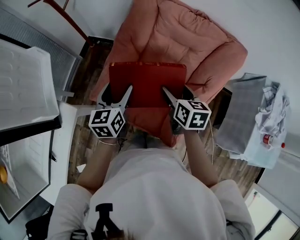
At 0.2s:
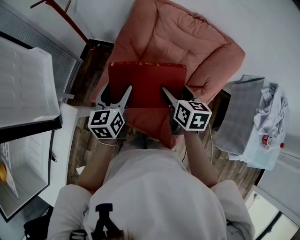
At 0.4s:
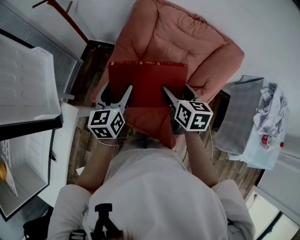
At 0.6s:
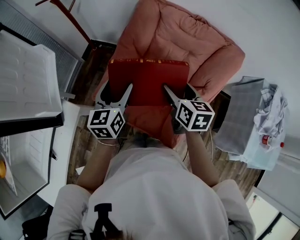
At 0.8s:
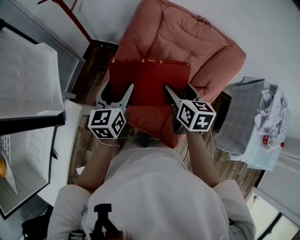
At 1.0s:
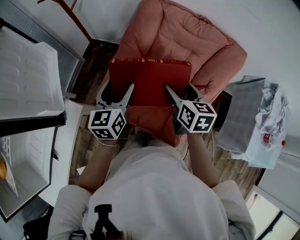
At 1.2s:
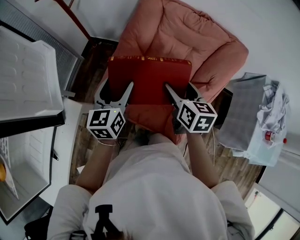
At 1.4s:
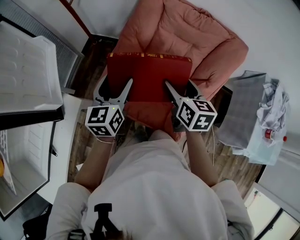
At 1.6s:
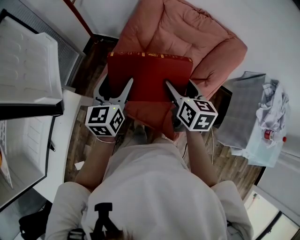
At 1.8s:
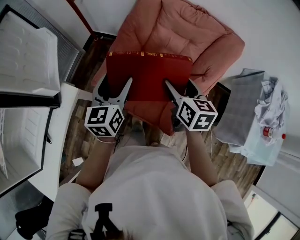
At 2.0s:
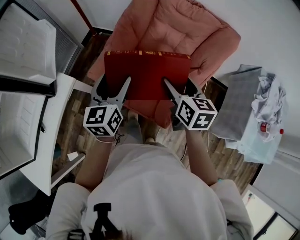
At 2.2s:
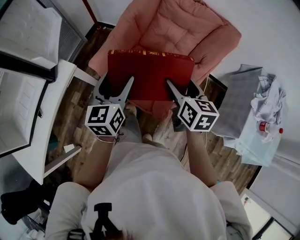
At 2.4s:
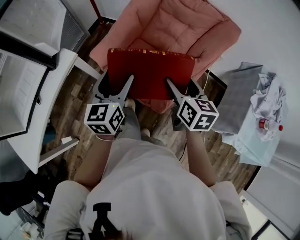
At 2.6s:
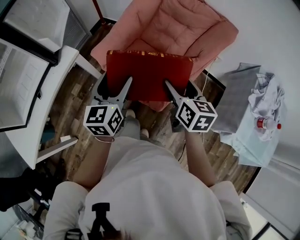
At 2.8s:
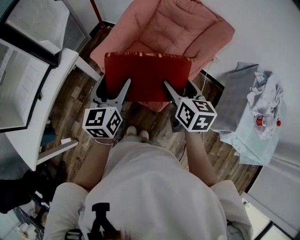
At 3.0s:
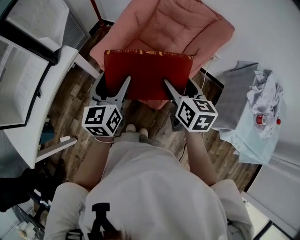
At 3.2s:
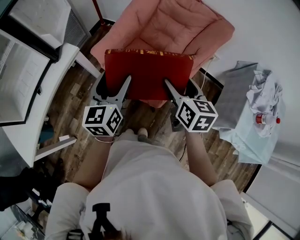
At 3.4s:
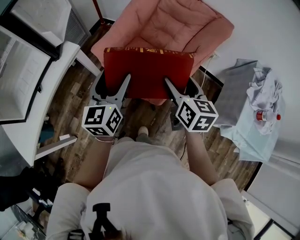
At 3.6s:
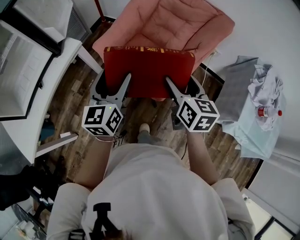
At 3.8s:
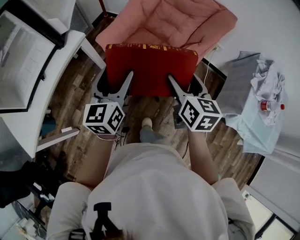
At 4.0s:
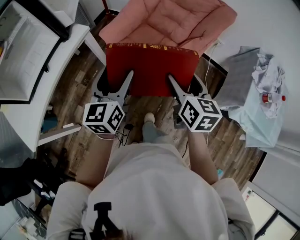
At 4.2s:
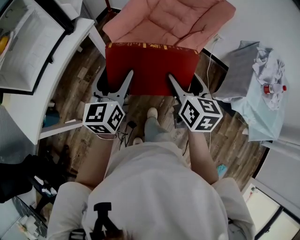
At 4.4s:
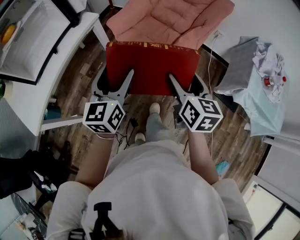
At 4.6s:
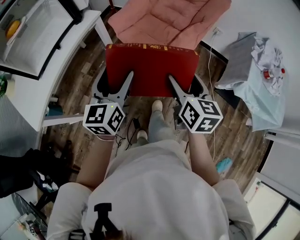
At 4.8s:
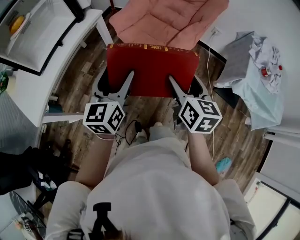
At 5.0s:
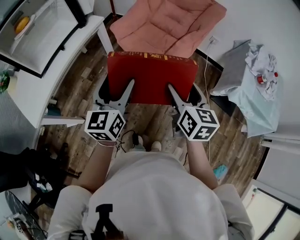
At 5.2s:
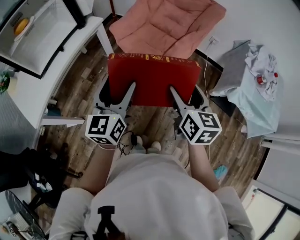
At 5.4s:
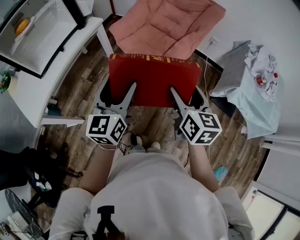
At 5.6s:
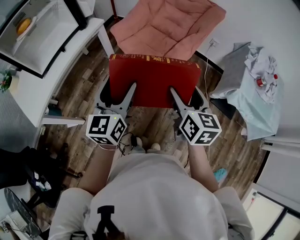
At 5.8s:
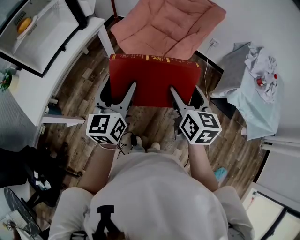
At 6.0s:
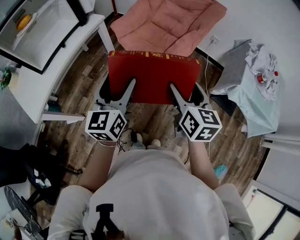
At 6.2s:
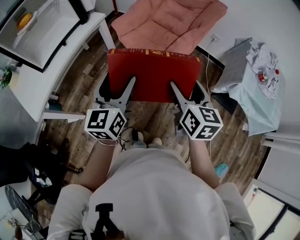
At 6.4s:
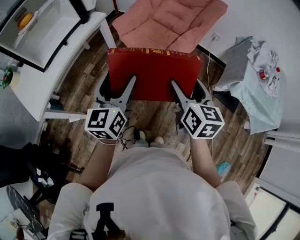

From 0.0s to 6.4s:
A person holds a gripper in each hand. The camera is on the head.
From 0.0s to 1.6s: The right gripper ends up about 5 cm from where it was. Meanwhile the left gripper travels upward by approximately 5 cm.
From 1.6s to 3.2s: The grippers both shift backward by approximately 20 cm.
From 3.2s to 4.8s: The two grippers go about 30 cm backward.
From 4.8s to 6.4s: The grippers make only small movements.

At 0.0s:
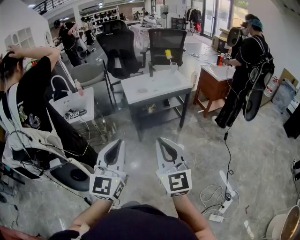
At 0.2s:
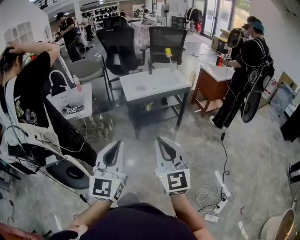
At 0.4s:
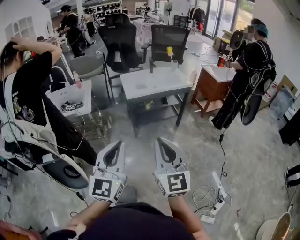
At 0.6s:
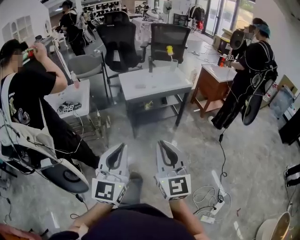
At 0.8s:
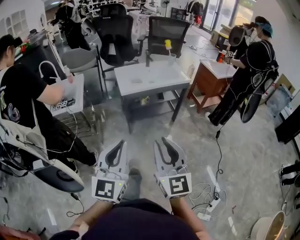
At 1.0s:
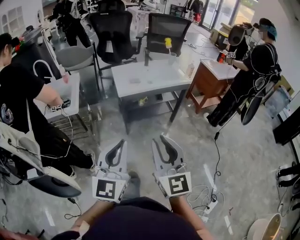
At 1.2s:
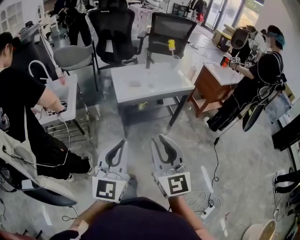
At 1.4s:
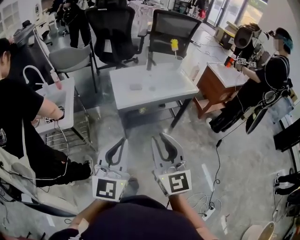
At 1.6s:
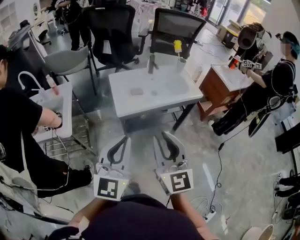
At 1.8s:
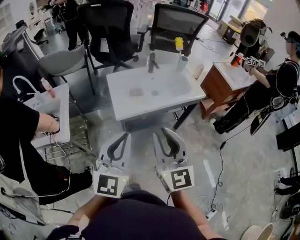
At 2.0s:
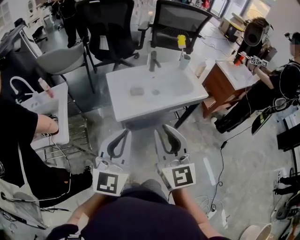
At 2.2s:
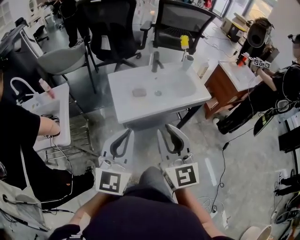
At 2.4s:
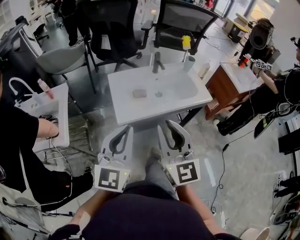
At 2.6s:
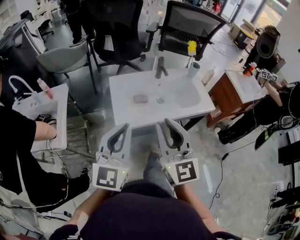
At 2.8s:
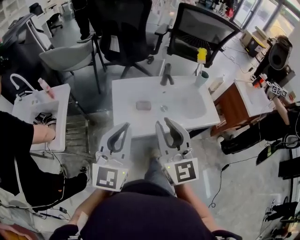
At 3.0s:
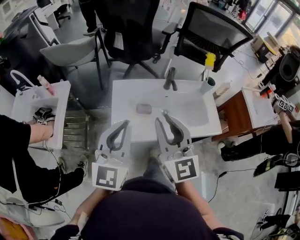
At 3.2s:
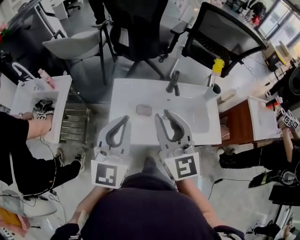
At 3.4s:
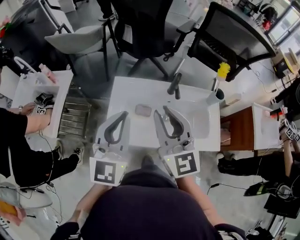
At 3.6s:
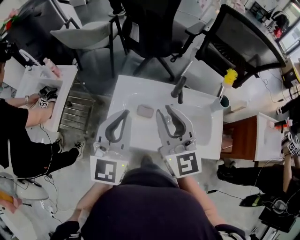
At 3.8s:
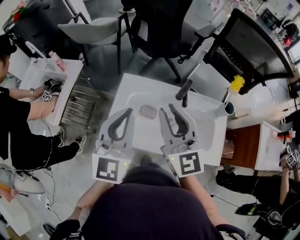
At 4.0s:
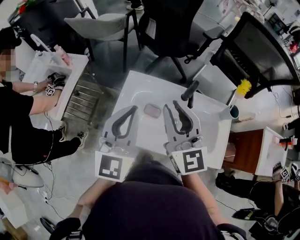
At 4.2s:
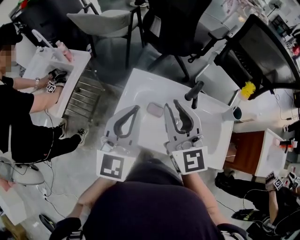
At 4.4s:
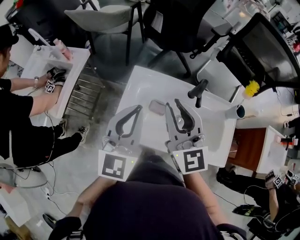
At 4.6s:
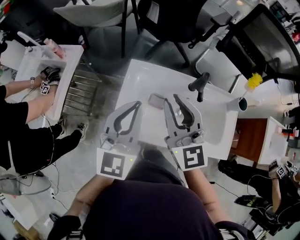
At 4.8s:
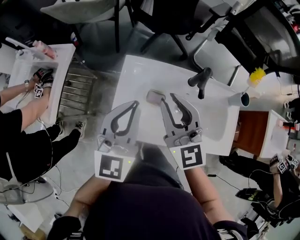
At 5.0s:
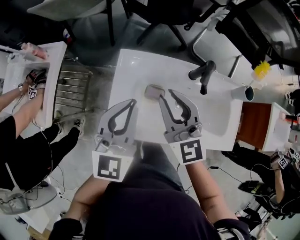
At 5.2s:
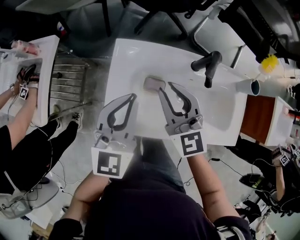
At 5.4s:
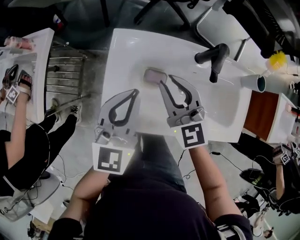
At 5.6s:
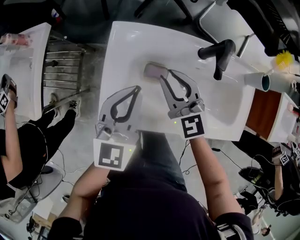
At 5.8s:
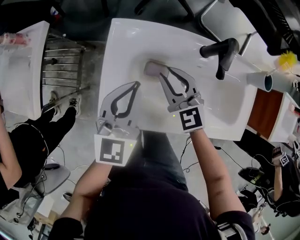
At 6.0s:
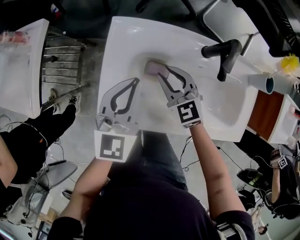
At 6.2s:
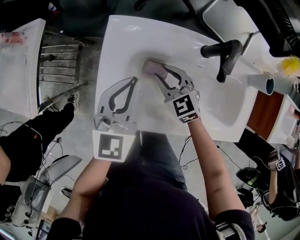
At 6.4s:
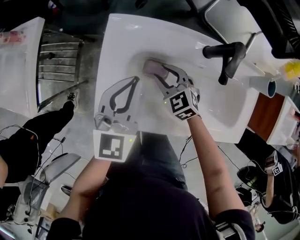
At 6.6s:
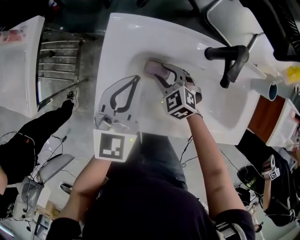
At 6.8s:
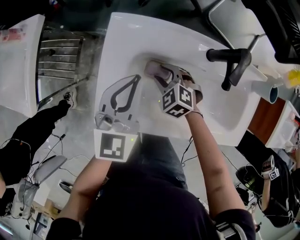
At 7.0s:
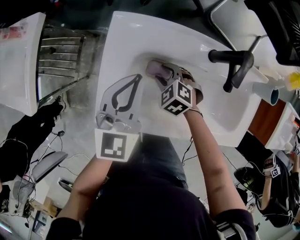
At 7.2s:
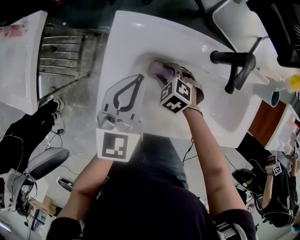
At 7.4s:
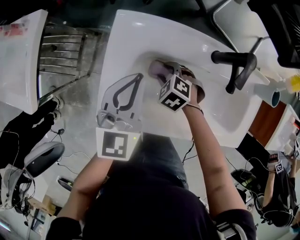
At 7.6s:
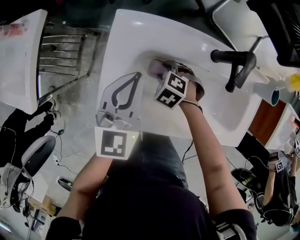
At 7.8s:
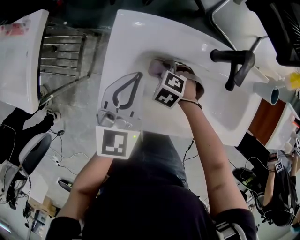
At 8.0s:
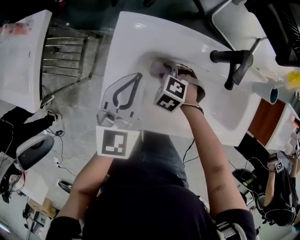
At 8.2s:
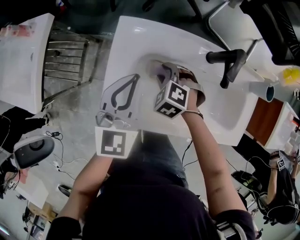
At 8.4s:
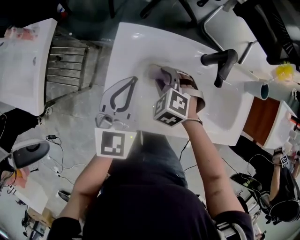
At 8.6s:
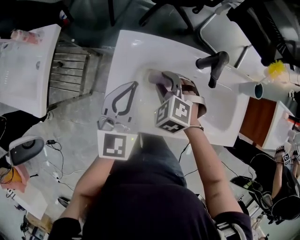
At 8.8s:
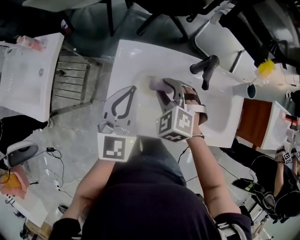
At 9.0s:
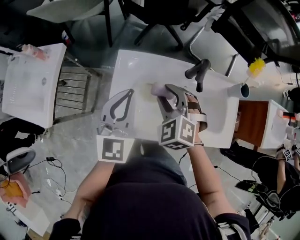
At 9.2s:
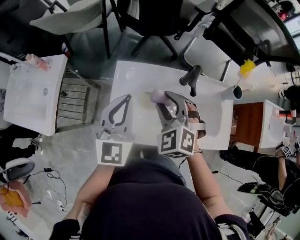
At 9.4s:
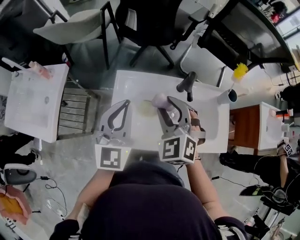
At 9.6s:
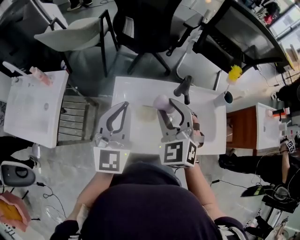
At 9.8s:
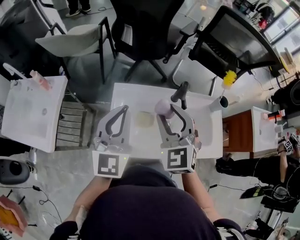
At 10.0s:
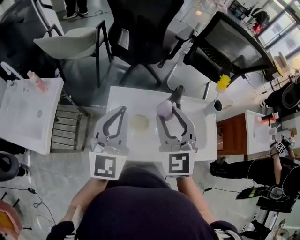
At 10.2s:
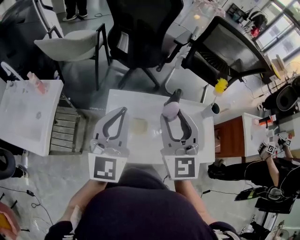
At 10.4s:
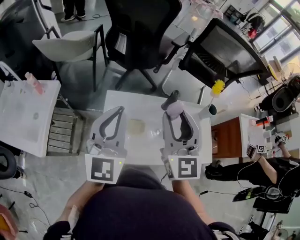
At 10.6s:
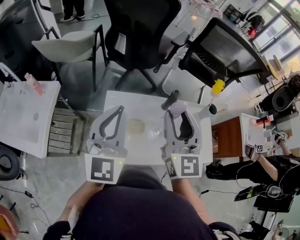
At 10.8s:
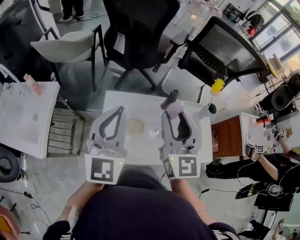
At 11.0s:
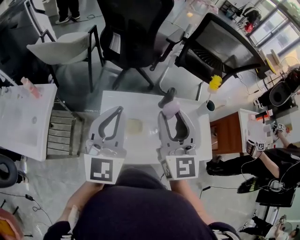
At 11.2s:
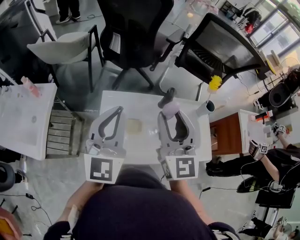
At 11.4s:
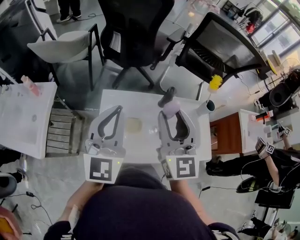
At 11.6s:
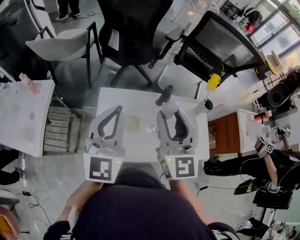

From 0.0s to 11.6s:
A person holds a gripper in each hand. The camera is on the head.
From 0.0s to 1.4s: Both grippers move forward, some 30 cm.
From 1.4s to 2.8s: The two grippers go roughly 35 cm forward.
From 2.8s to 4.4s: The right gripper moves approximately 20 cm, and rotates roughly 30 degrees, while the left gripper ends up some 20 cm from where it was, and turns by about 20 degrees.
From 4.4s to 5.8s: The left gripper is displaced downward by roughly 15 cm. The right gripper moves downward, approximately 25 cm, and turns by some 30 degrees.
From 5.8s to 7.2s: The right gripper goes roughly 15 cm downward, angles its fingers downward, by about 40 degrees, and opens up.
From 7.2s to 8.8s: The right gripper shifts roughly 20 cm upward, and changes its angle by about 20 degrees. Meanwhile the left gripper travels upward by approximately 10 cm.
From 8.8s to 10.2s: The left gripper is displaced upward by approximately 15 cm. Meanwhile the right gripper travels upward by roughly 25 cm, and tilts its fingers about 50 degrees upward.
From 10.2s to 11.6s: The grippers stay close to where they were, moving slightly.

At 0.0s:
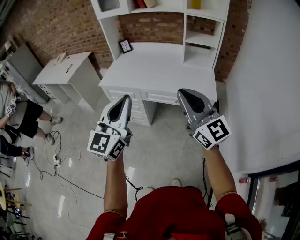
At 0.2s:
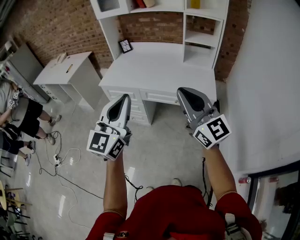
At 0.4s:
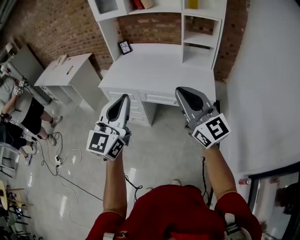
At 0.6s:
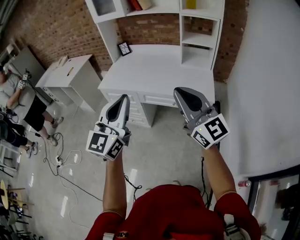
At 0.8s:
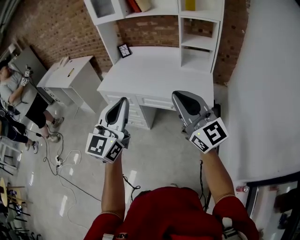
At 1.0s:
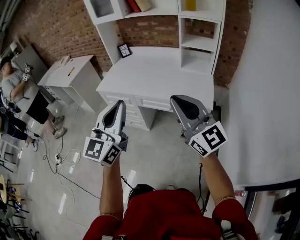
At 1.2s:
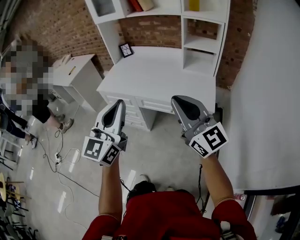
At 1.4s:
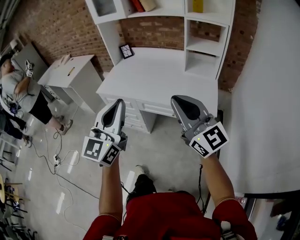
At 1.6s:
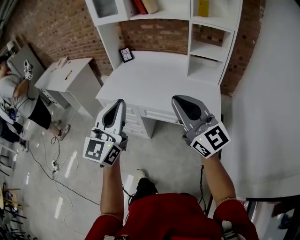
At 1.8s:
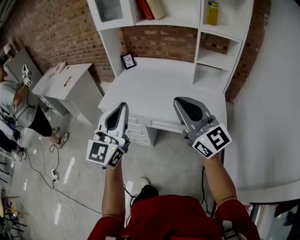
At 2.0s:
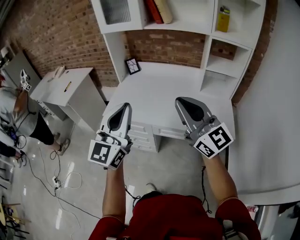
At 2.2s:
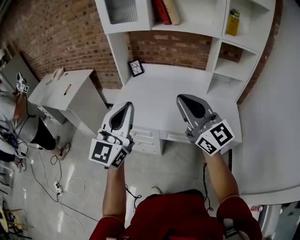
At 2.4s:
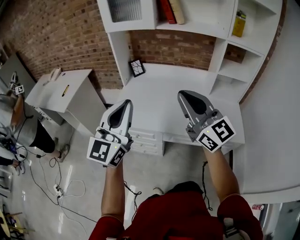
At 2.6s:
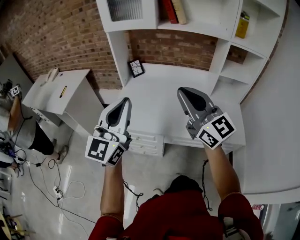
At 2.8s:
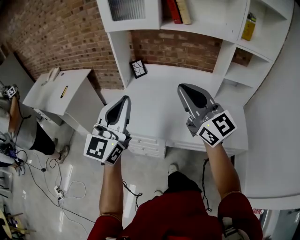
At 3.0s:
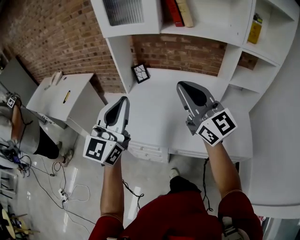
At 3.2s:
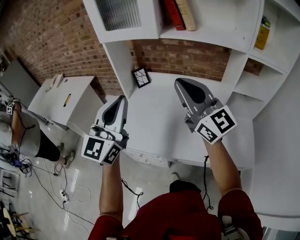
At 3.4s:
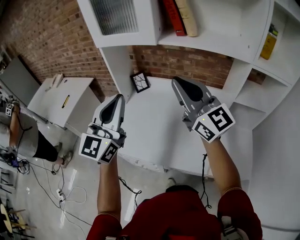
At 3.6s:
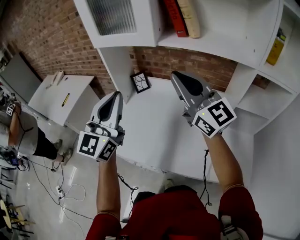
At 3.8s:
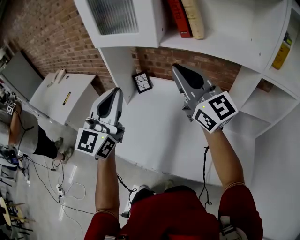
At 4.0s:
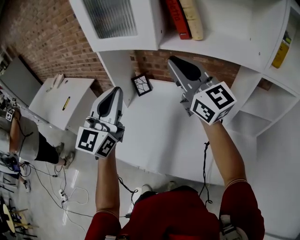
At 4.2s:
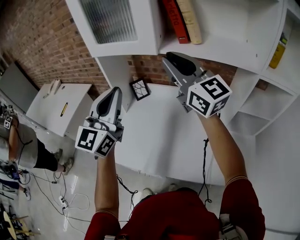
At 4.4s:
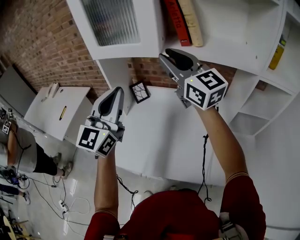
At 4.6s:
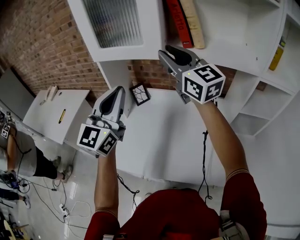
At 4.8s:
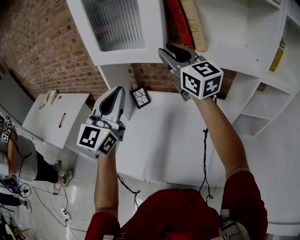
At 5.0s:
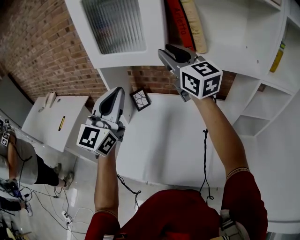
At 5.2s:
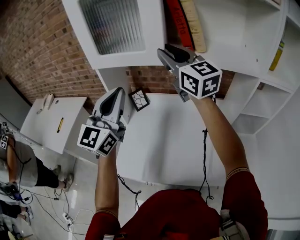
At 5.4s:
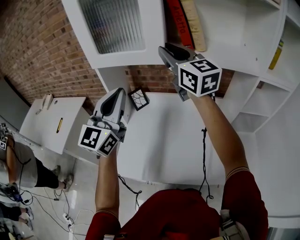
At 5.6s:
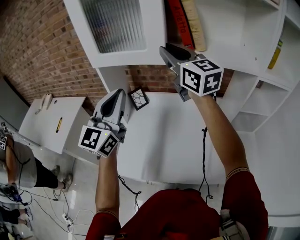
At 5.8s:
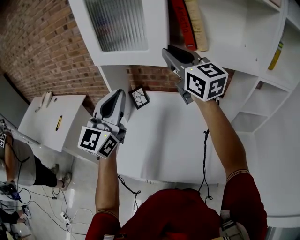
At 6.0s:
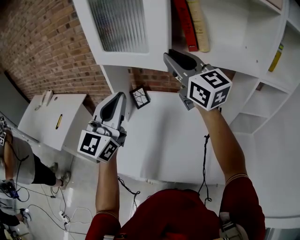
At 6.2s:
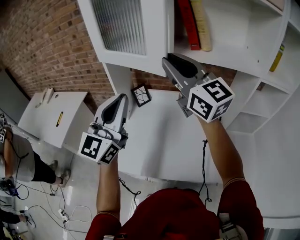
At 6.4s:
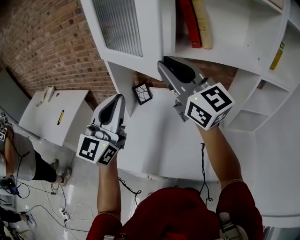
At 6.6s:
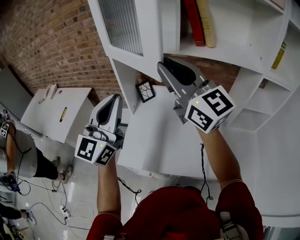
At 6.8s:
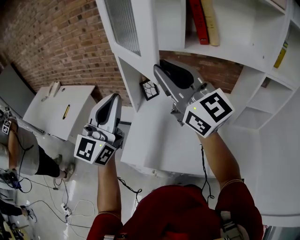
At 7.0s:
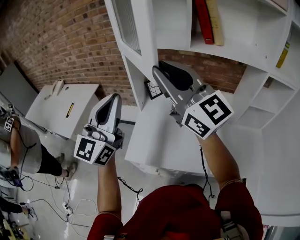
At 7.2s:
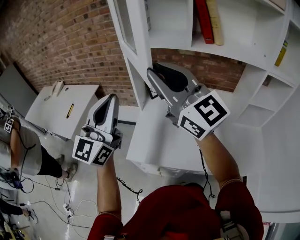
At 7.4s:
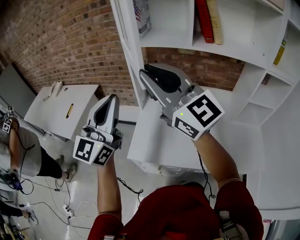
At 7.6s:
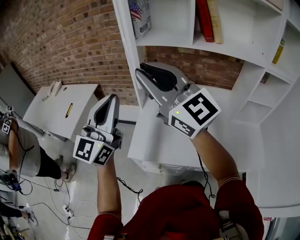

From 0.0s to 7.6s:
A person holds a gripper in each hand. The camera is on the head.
From 0.0s to 1.6s: The two grippers go some 10 cm forward.
From 1.6s to 3.0s: Both grippers move forward and to the left, roughly 40 cm.
From 3.0s to 4.6s: The grippers both shift forward by about 25 cm. The right gripper opens up.
From 4.6s to 6.0s: The grippers make only small movements.
From 6.0s to 7.6s: The right gripper heads to the left and backward, covering roughly 25 cm, while the left gripper heads to the left and backward, covering approximately 15 cm.
